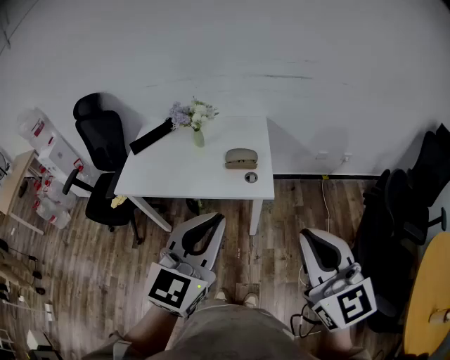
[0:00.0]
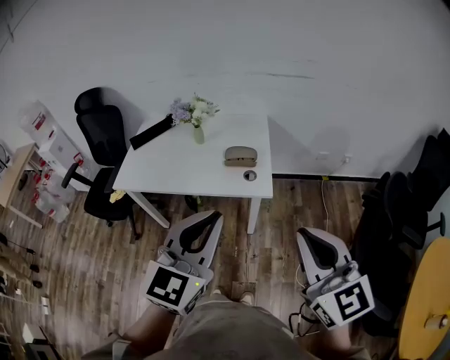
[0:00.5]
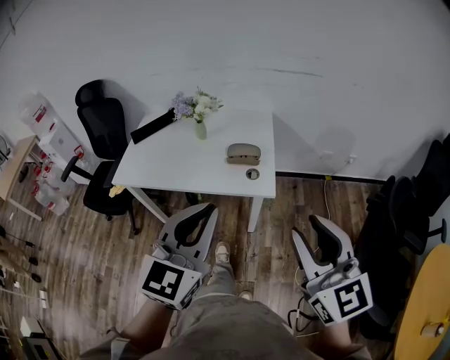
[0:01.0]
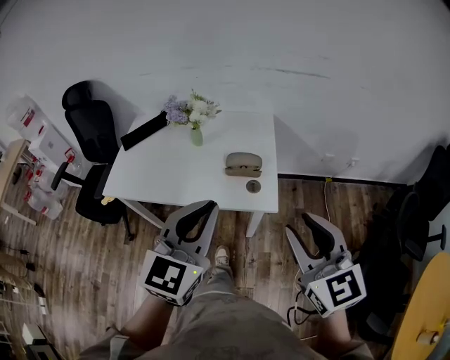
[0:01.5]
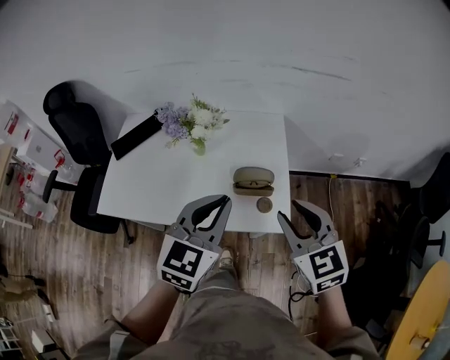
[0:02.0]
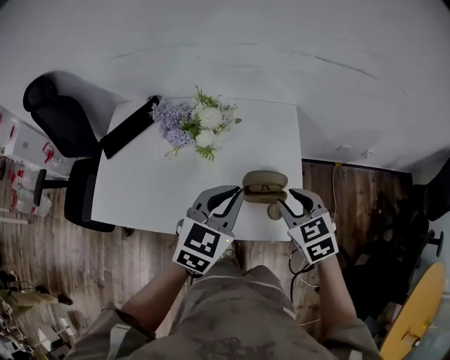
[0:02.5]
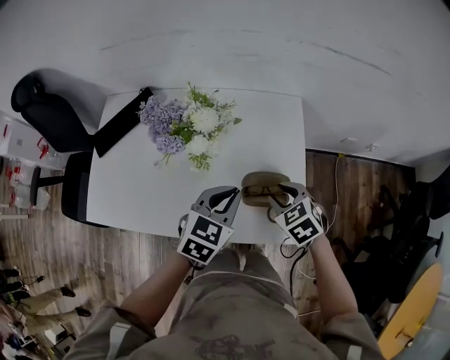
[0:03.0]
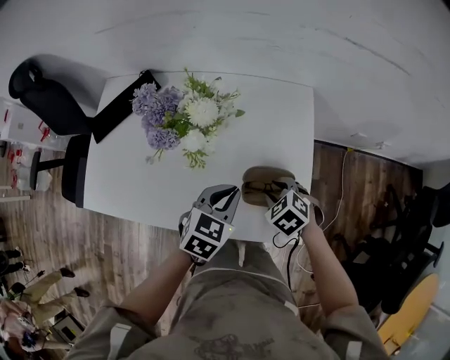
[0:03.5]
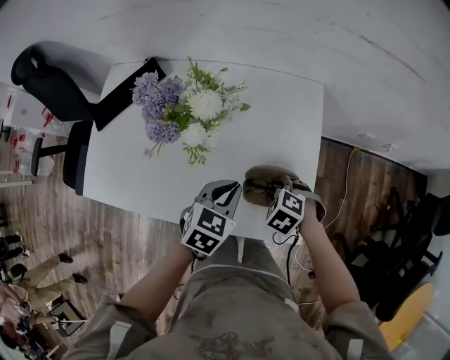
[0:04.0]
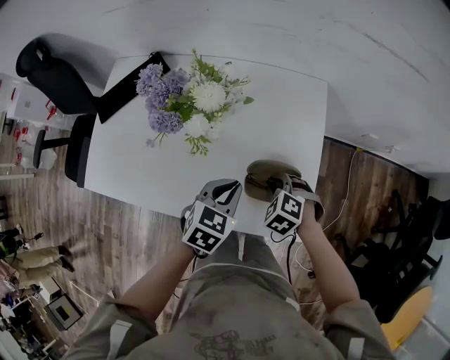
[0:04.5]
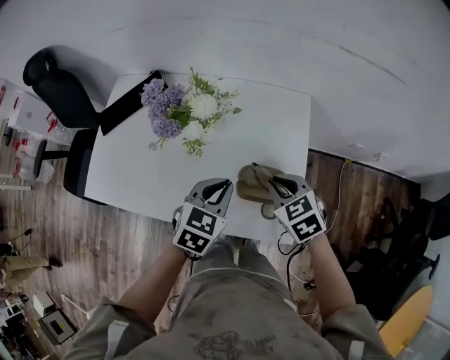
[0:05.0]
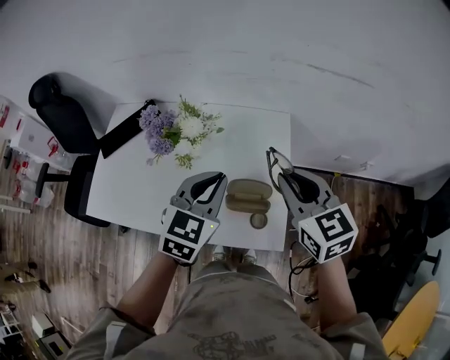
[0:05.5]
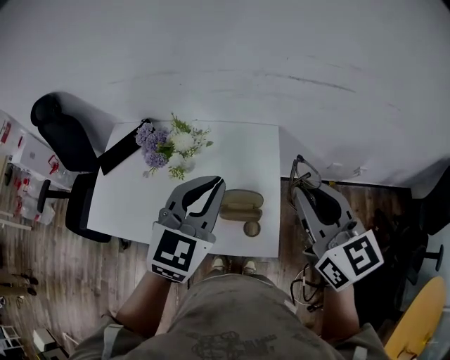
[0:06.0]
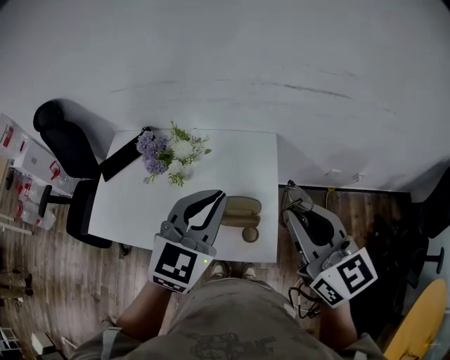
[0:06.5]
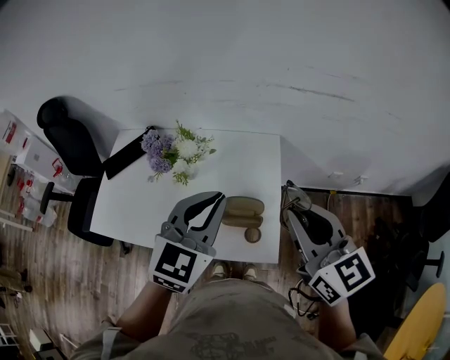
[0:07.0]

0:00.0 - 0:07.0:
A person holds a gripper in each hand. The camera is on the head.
0:00.0 - 0:02.0: The left gripper heads forward, covering some 30 cm. Meanwhile the right gripper travels forward and downward by some 35 cm, changes its angle by about 20 degrees, and opens its fingers.
0:02.0 - 0:03.5: Both grippers travel together downward and forward, roughly 30 cm. The right gripper tilts its fingers about 40 degrees downward, while the left gripper swivels roughly 30 degrees.
0:03.5 - 0:05.0: The right gripper moves upward, approximately 10 cm, and closes up.
0:05.0 - 0:07.0: Both grippers move upward, about 25 cm. The right gripper points its fingers approximately 40 degrees further upward; the left gripper changes its angle by roughly 30 degrees.

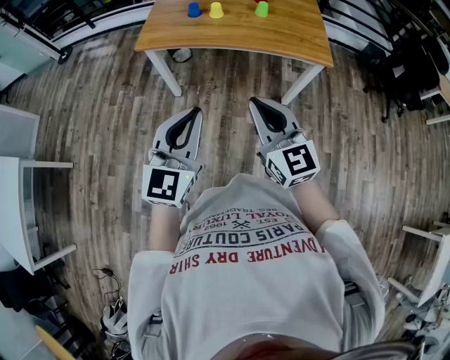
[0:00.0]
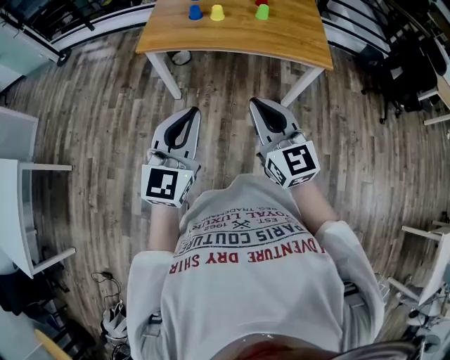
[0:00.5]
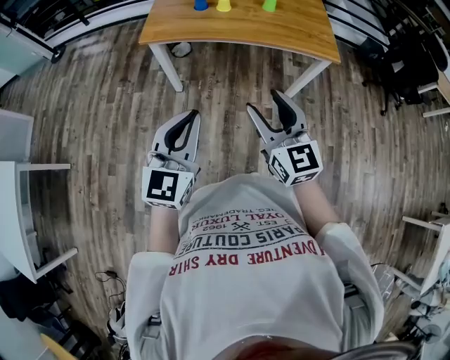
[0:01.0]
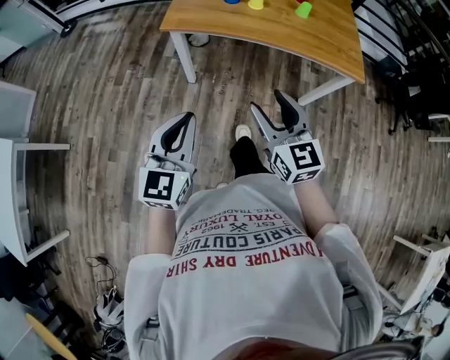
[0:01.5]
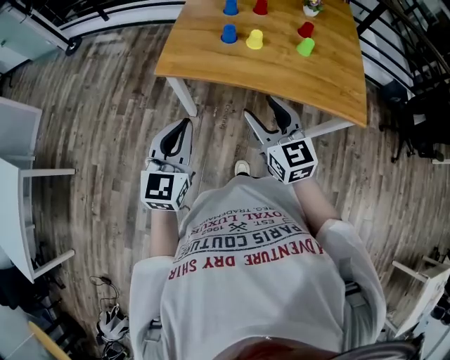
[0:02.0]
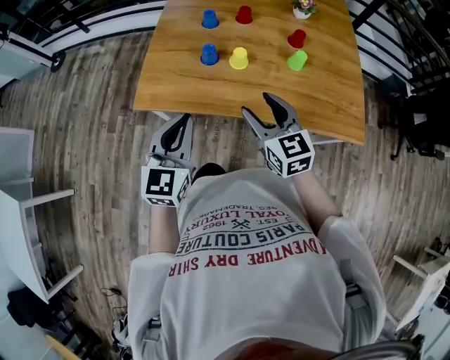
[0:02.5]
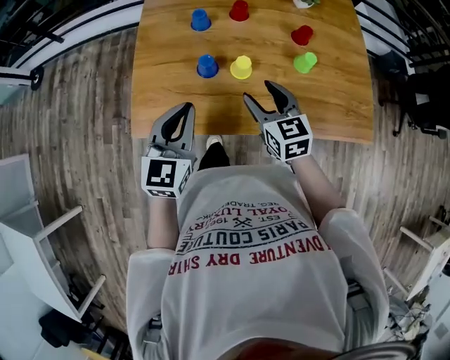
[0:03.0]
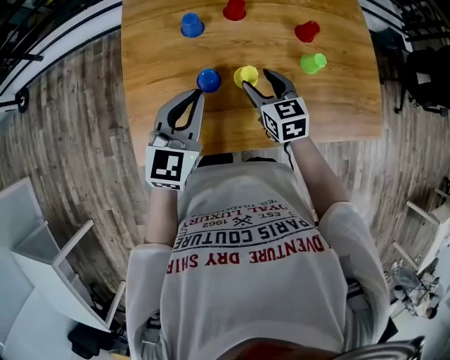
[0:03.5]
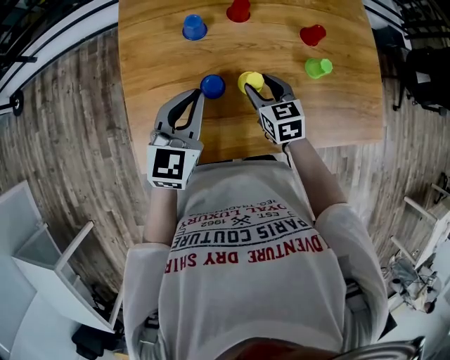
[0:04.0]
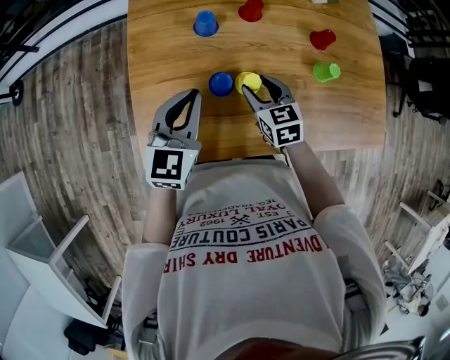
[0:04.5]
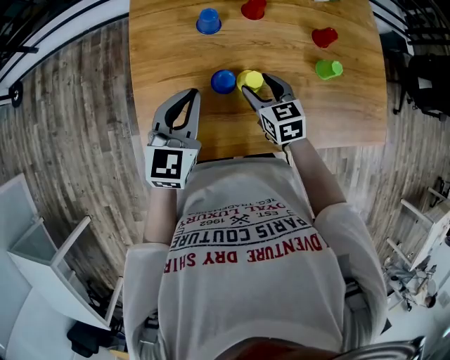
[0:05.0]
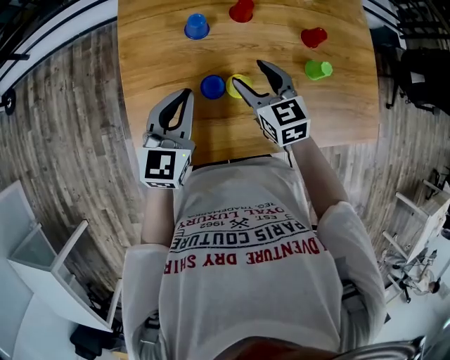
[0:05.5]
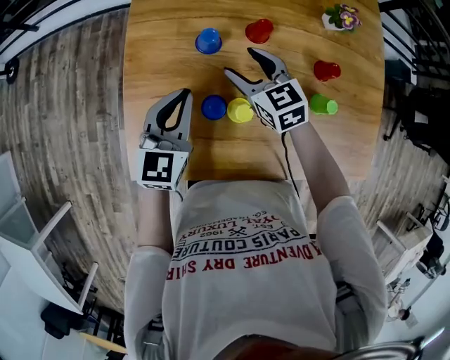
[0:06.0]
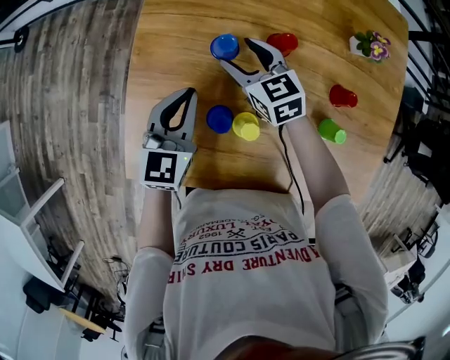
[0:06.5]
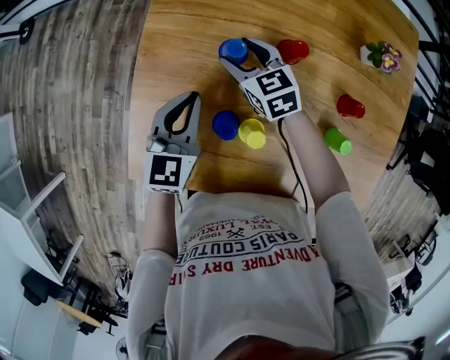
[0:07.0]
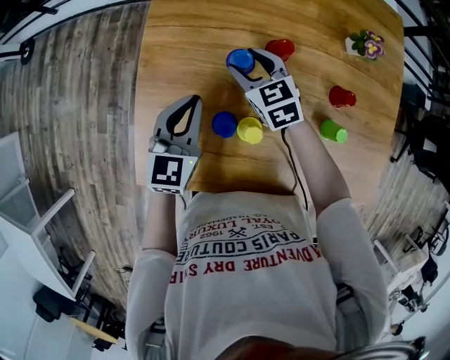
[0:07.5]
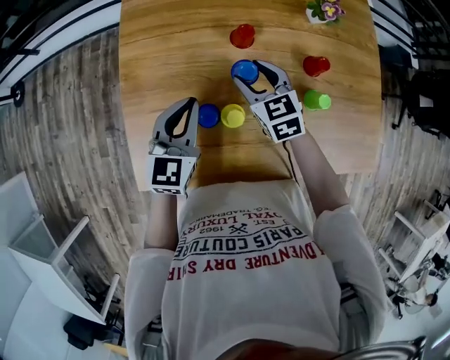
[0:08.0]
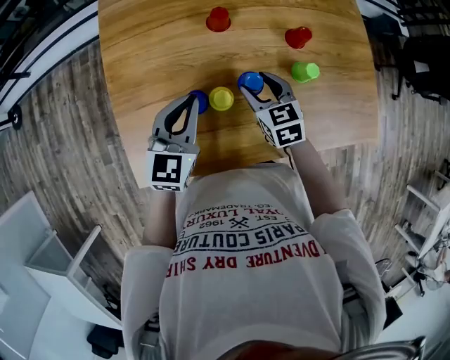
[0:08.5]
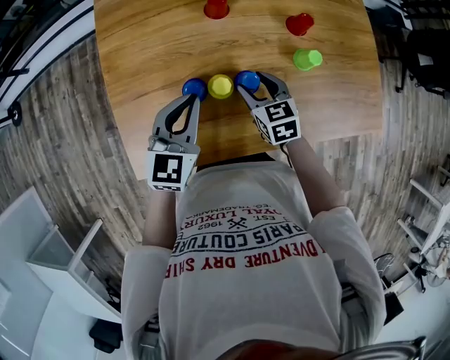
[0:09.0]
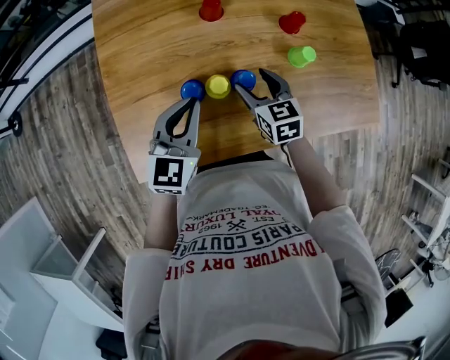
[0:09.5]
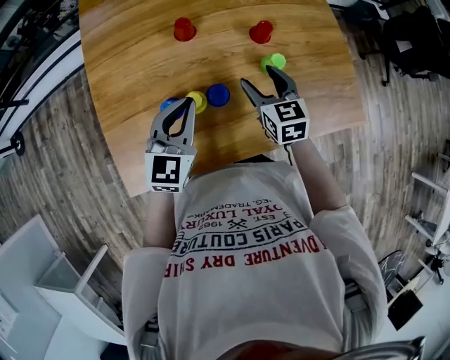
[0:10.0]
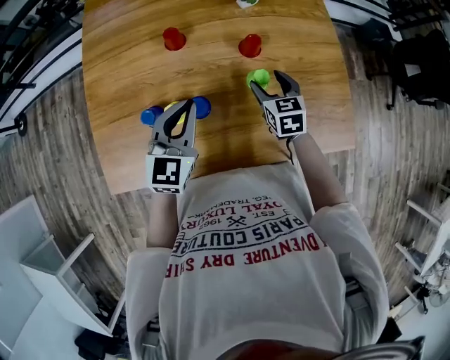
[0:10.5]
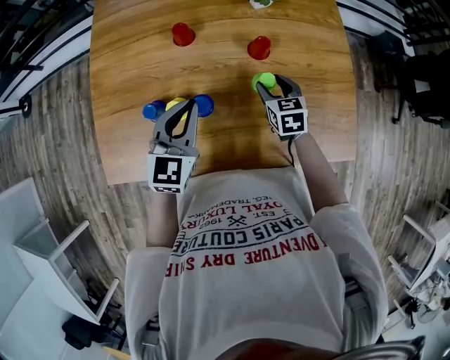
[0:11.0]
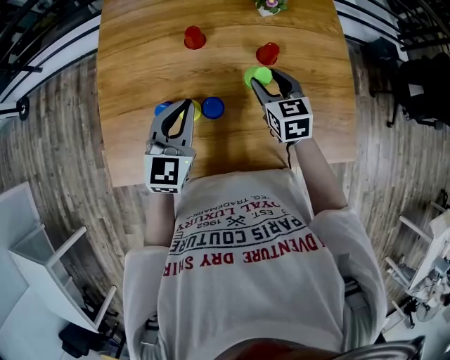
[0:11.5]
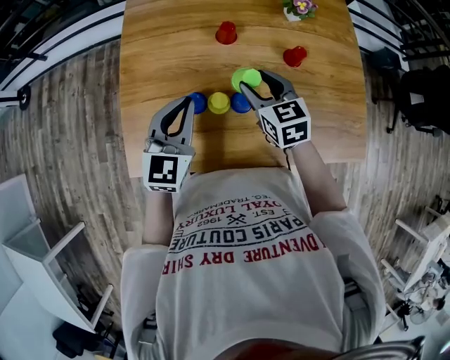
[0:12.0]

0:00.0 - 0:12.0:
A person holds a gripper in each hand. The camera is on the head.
0:00.0 - 0:02.0: The left gripper travels forward and to the left by about 25 cm, while the right gripper is displaced forward by roughly 25 cm, and opens.
0:02.0 - 0:04.0: The left gripper goes approximately 40 cm forward, and turns by some 30 degrees. The right gripper travels forward and downward by some 40 cm, and turns by about 30 degrees.
0:04.0 - 0:06.0: The left gripper moves forward, roughly 5 cm; the right gripper moves forward, to the left and upward, roughly 15 cm, and turns by about 20 degrees.
0:06.0 - 0:08.0: The right gripper heads to the right, covering about 5 cm.
0:08.0 - 0:10.0: The left gripper is displaced to the right and backward by about 10 cm, while the right gripper is displaced to the right and backward by about 20 cm, and turns by some 20 degrees.
0:10.0 - 0:12.0: The two grippers go roughly 10 cm to the left.

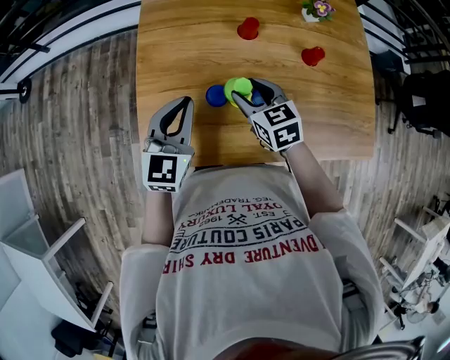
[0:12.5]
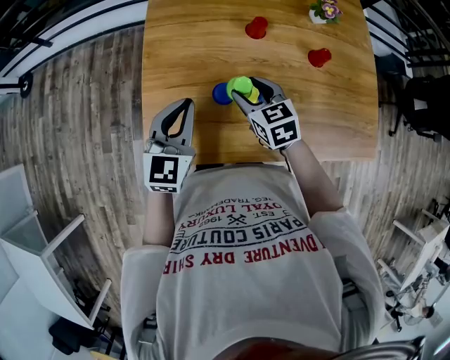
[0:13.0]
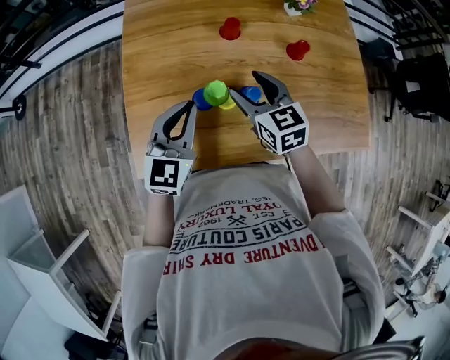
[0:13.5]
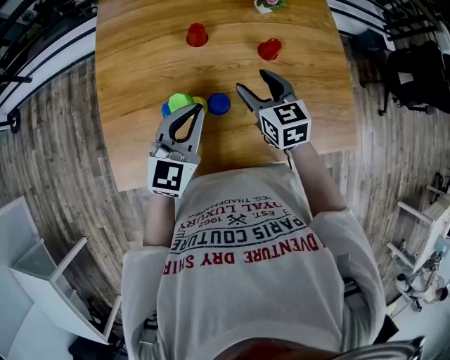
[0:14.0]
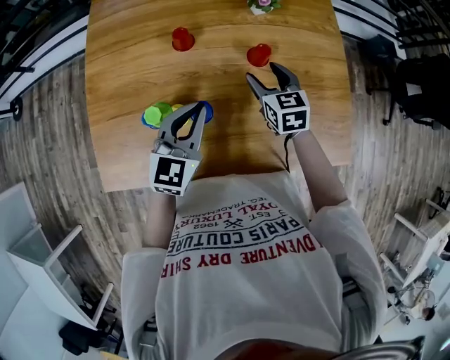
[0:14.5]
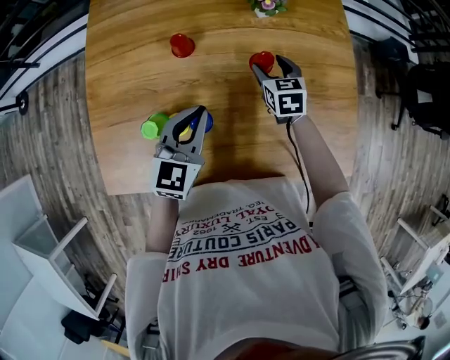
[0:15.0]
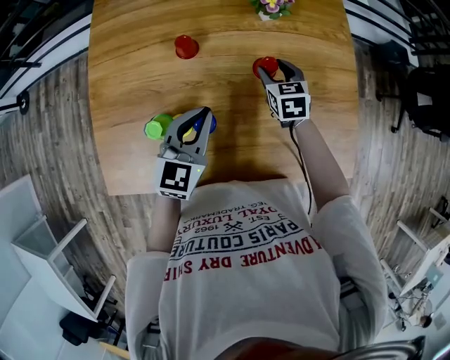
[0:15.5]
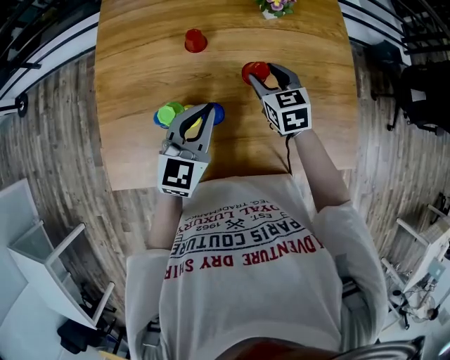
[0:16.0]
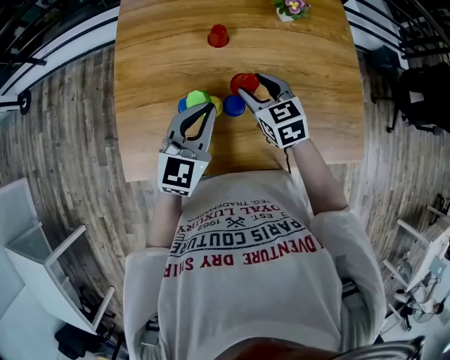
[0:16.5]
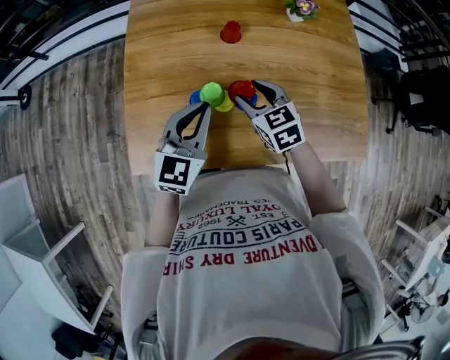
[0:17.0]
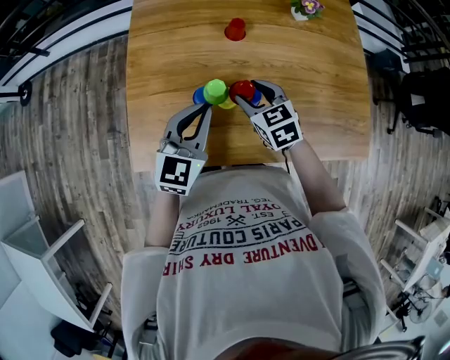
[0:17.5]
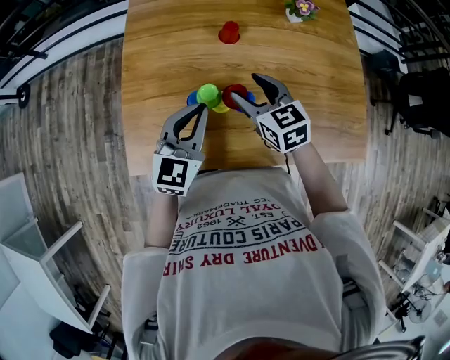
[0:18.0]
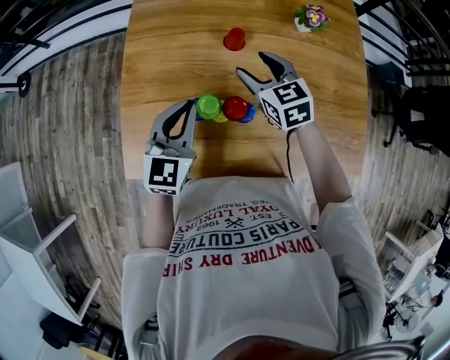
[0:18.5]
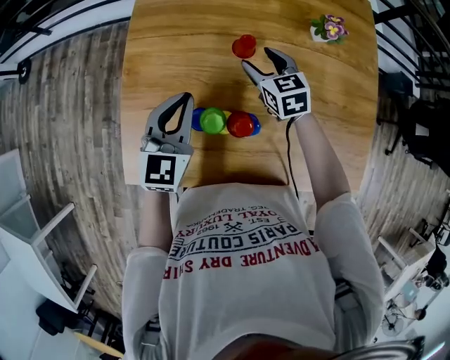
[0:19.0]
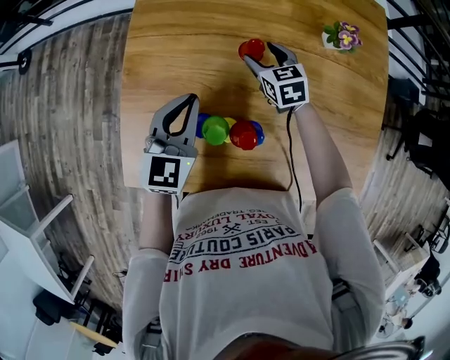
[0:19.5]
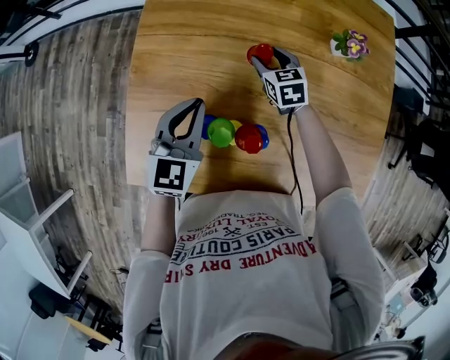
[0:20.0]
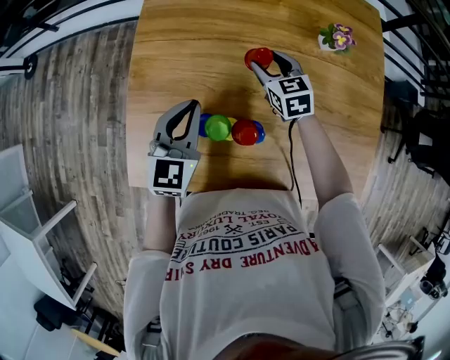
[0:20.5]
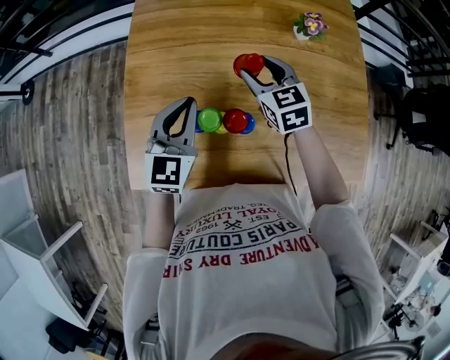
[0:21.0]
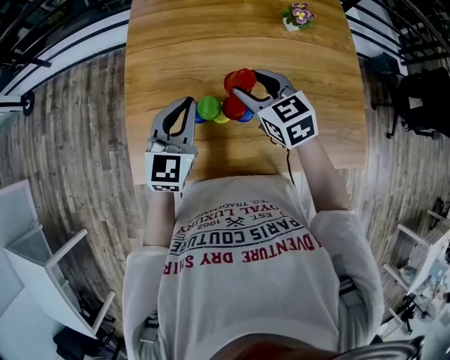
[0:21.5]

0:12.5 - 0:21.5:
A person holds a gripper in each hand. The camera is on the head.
0:12.5 - 0:14.5: The two grippers go some 25 cm to the right.
0:14.5 - 0:17.0: The grippers both shift to the left and backward by about 20 cm.
0:17.0 - 0:19.5: The right gripper shifts some 25 cm forward, while the left gripper moves forward, approximately 15 cm.
0:19.5 - 0:21.5: The left gripper is displaced backward and upward by approximately 10 cm. The right gripper moves backward and upward, approximately 25 cm.
